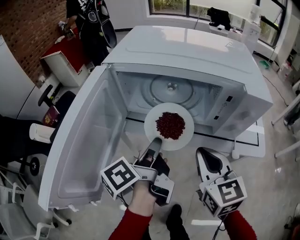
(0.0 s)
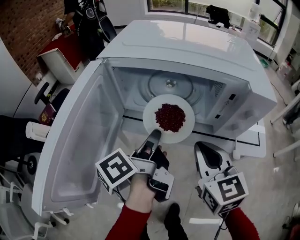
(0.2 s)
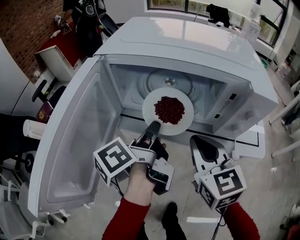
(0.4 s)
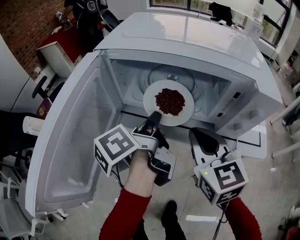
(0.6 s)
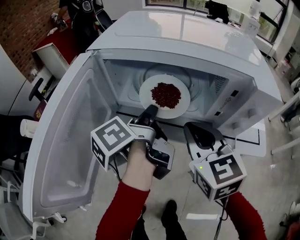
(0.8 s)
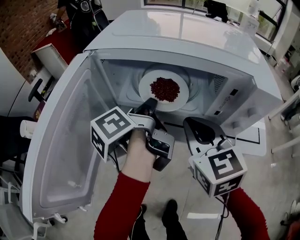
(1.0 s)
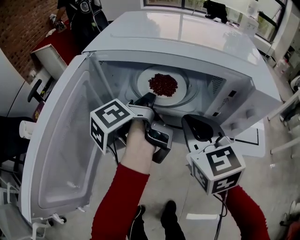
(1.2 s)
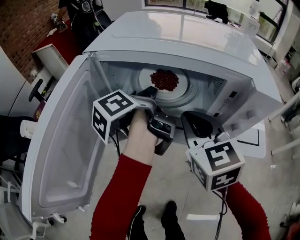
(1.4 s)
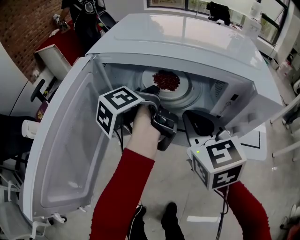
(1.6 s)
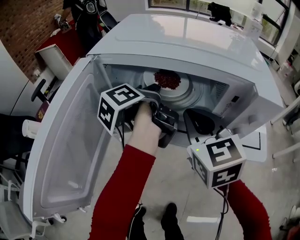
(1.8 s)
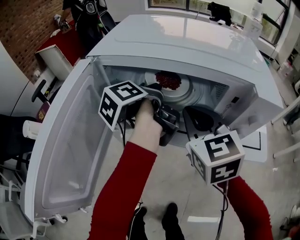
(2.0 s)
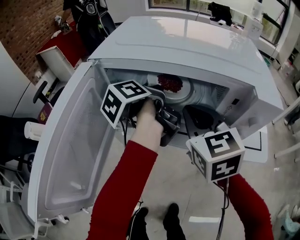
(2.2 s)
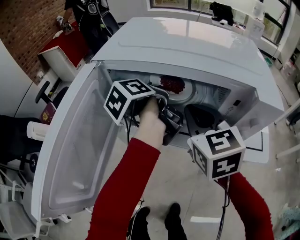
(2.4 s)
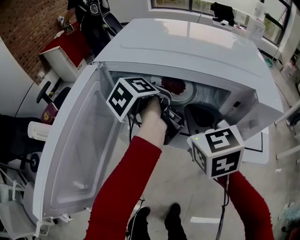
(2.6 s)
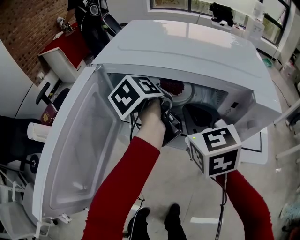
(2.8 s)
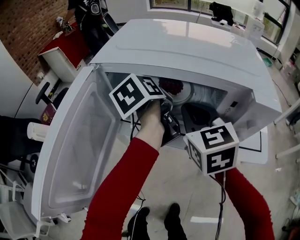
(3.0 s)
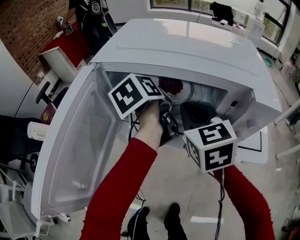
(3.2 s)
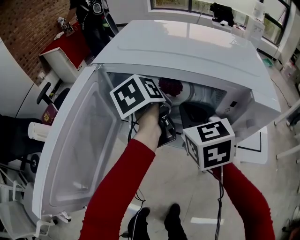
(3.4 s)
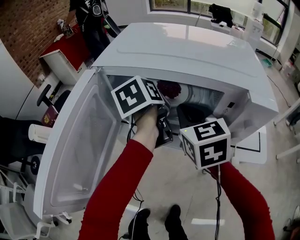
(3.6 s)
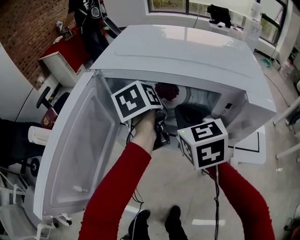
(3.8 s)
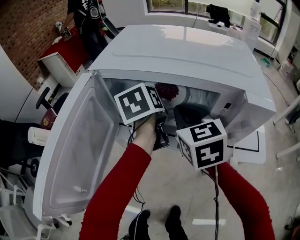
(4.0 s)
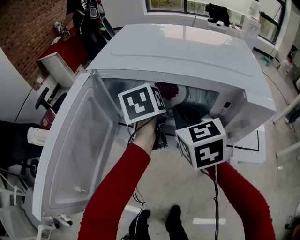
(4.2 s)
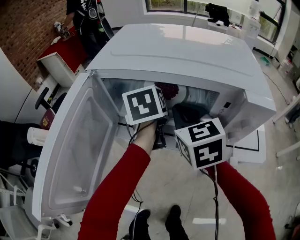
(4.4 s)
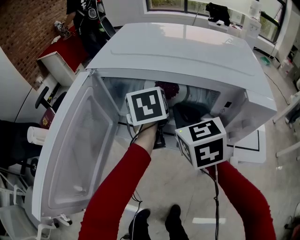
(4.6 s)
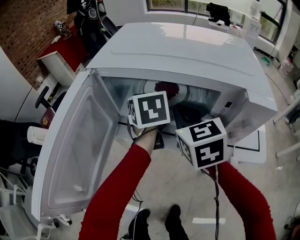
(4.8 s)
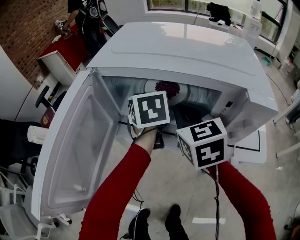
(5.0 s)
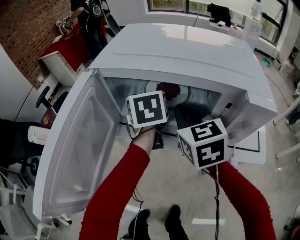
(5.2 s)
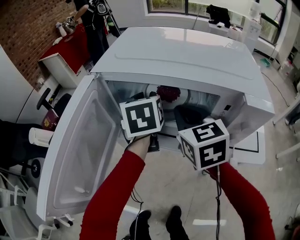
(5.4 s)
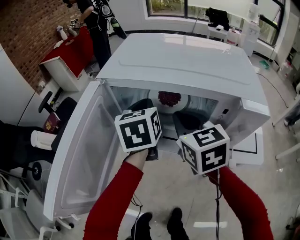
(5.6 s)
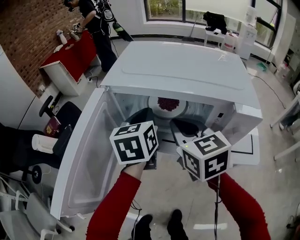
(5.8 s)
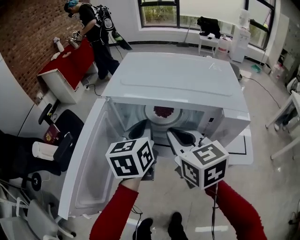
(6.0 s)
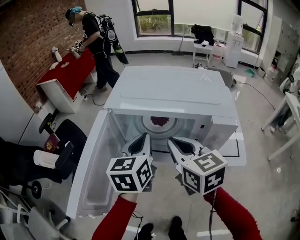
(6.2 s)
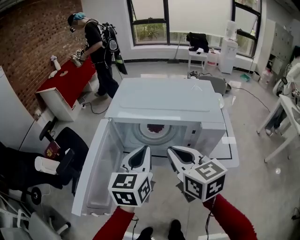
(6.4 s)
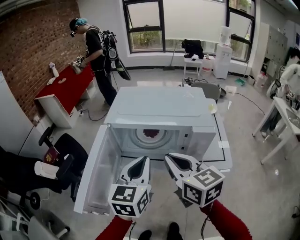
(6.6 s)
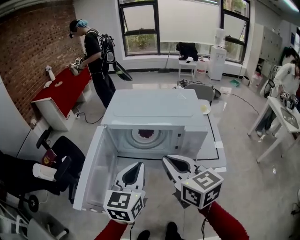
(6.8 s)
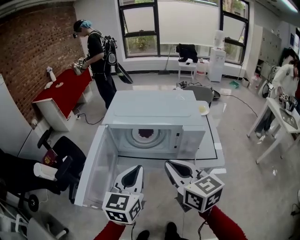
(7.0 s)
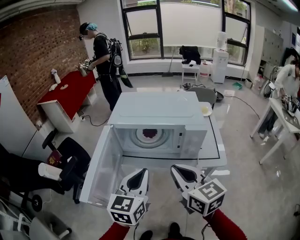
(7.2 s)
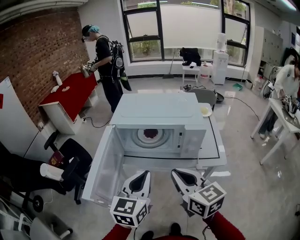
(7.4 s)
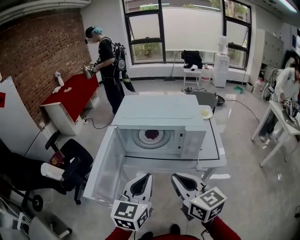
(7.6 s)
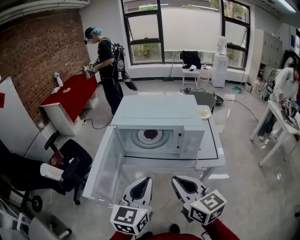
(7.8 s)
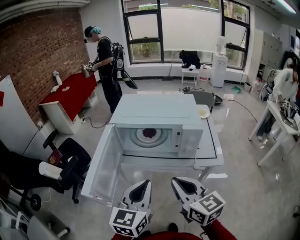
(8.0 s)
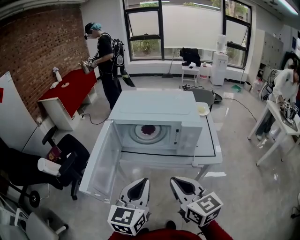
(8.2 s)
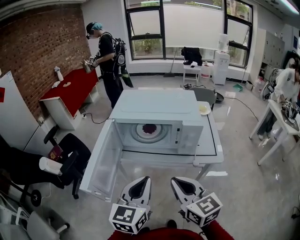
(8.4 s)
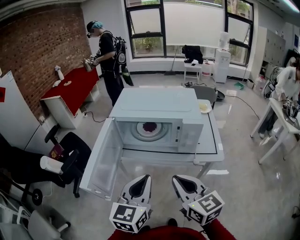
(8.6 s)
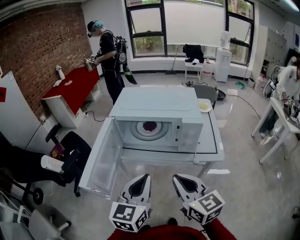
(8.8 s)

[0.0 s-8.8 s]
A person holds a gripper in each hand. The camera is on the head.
0.0 to 1.4 s: The left gripper is displaced forward by approximately 15 cm; the right gripper heads forward, covering approximately 10 cm.
1.4 to 3.0 s: The left gripper turns by some 30 degrees.
3.0 to 4.4 s: The left gripper changes its angle by about 30 degrees.
4.4 to 5.8 s: The right gripper shifts by about 5 cm, while the left gripper goes some 5 cm upward, and closes up.
5.8 to 7.4 s: The two grippers go roughly 20 cm backward. The left gripper turns by some 20 degrees.
7.4 to 8.8 s: The right gripper ends up about 5 cm from where it was. Meanwhile the left gripper is displaced backward by roughly 5 cm.

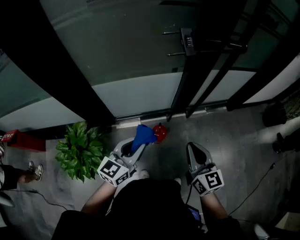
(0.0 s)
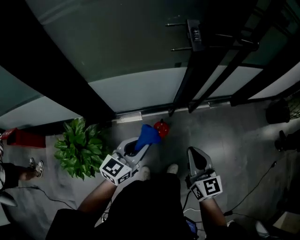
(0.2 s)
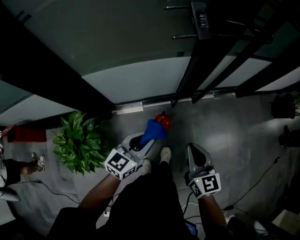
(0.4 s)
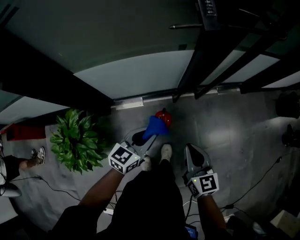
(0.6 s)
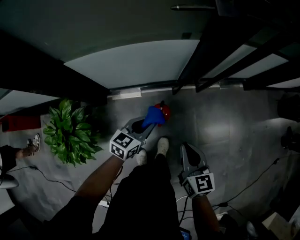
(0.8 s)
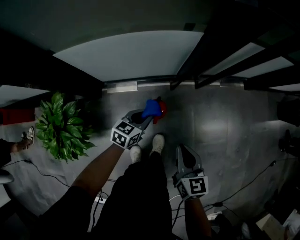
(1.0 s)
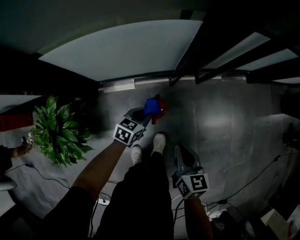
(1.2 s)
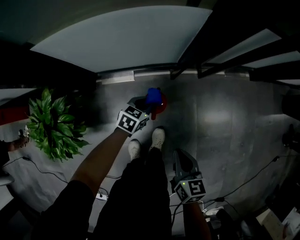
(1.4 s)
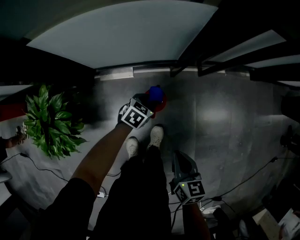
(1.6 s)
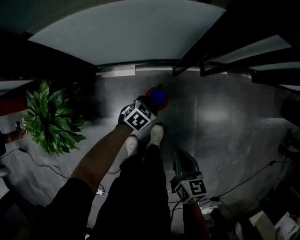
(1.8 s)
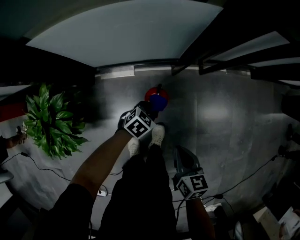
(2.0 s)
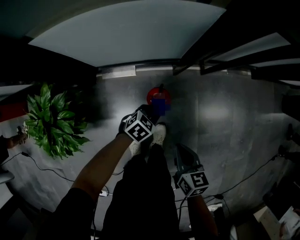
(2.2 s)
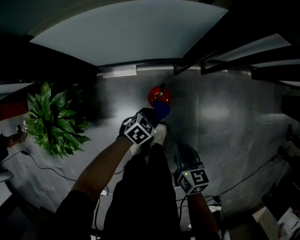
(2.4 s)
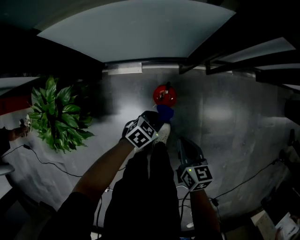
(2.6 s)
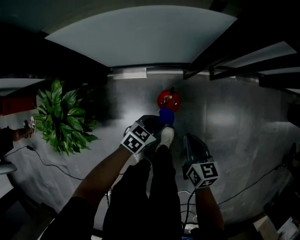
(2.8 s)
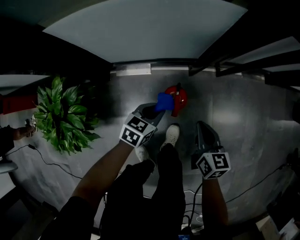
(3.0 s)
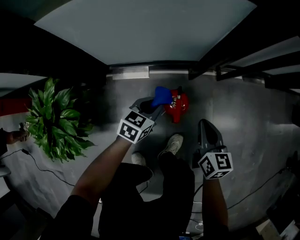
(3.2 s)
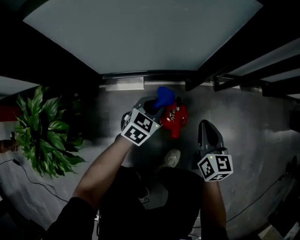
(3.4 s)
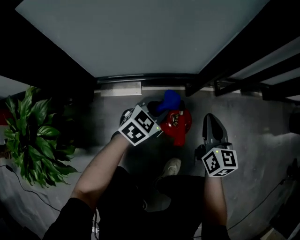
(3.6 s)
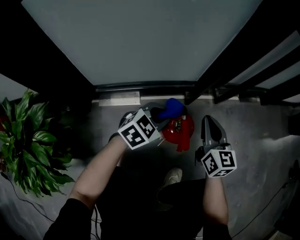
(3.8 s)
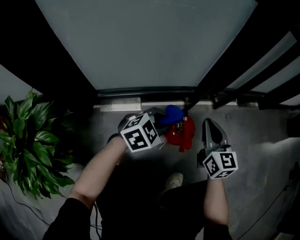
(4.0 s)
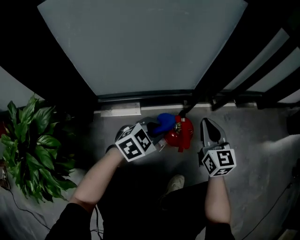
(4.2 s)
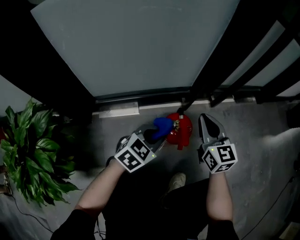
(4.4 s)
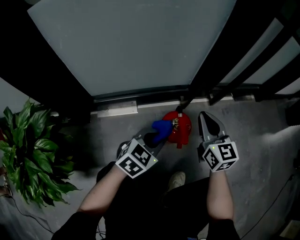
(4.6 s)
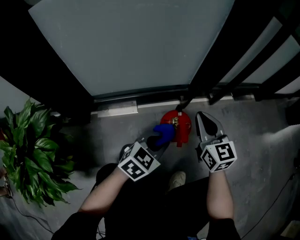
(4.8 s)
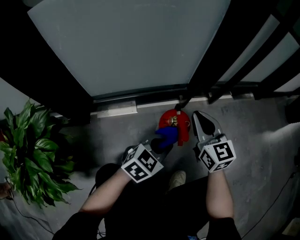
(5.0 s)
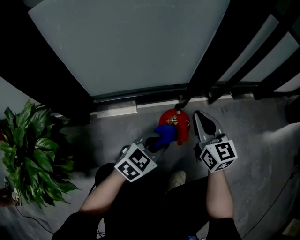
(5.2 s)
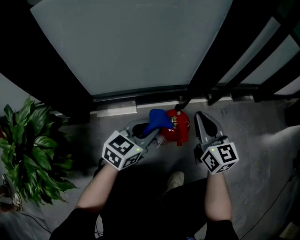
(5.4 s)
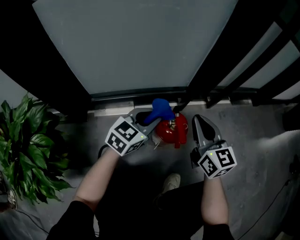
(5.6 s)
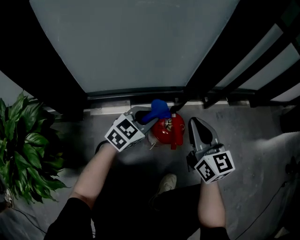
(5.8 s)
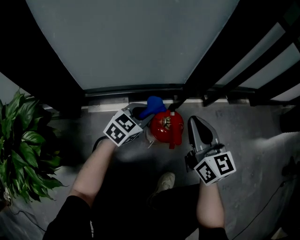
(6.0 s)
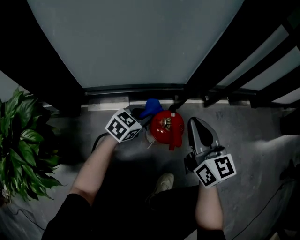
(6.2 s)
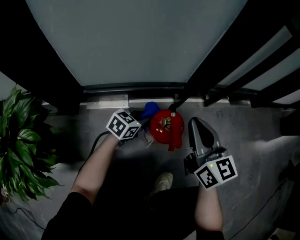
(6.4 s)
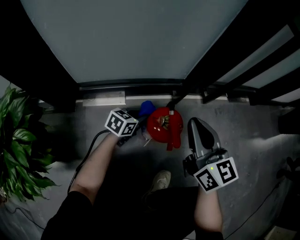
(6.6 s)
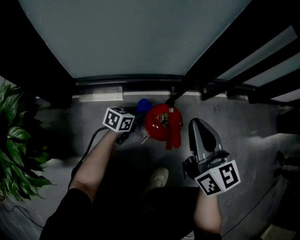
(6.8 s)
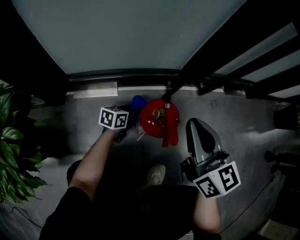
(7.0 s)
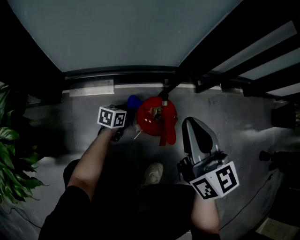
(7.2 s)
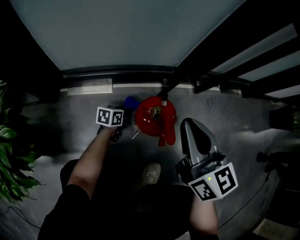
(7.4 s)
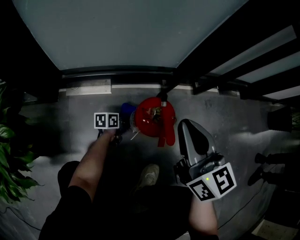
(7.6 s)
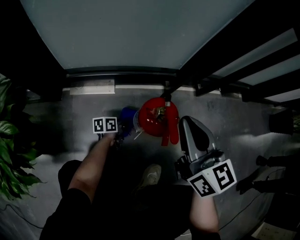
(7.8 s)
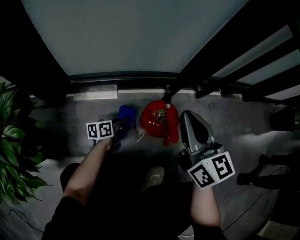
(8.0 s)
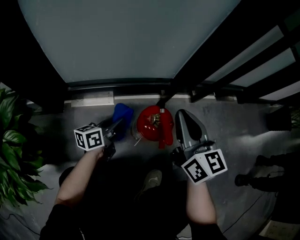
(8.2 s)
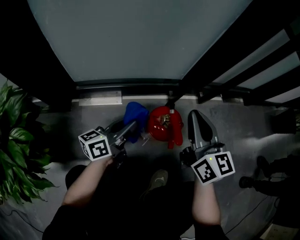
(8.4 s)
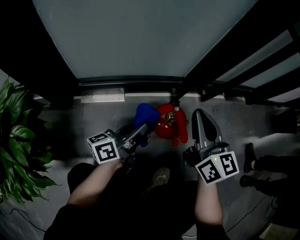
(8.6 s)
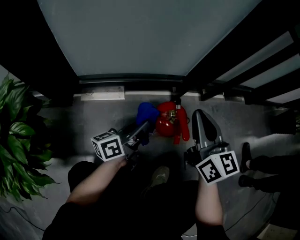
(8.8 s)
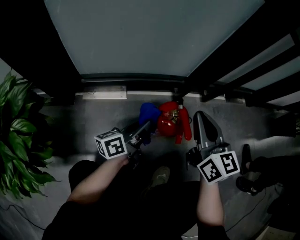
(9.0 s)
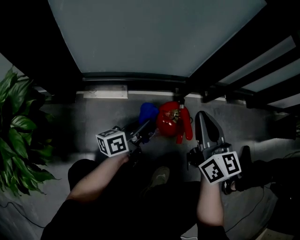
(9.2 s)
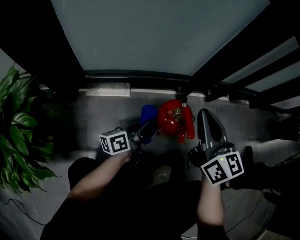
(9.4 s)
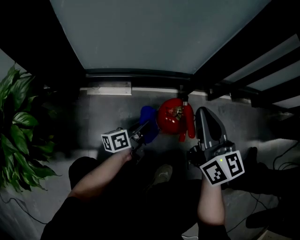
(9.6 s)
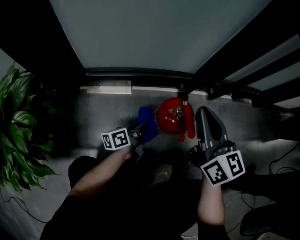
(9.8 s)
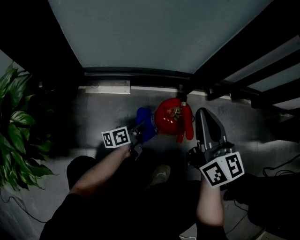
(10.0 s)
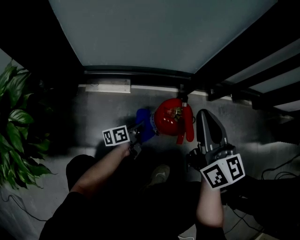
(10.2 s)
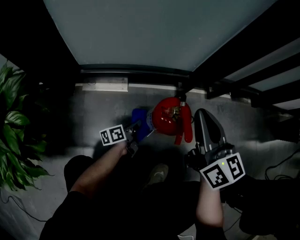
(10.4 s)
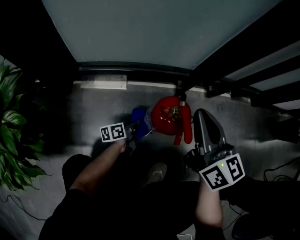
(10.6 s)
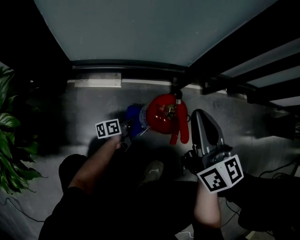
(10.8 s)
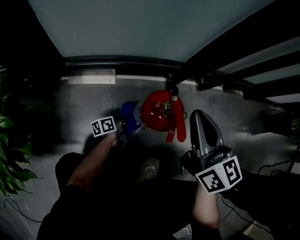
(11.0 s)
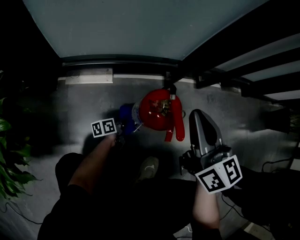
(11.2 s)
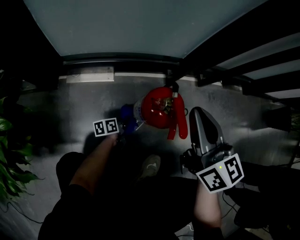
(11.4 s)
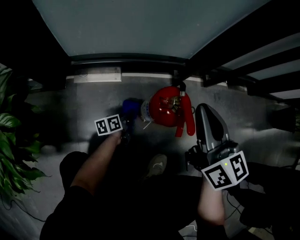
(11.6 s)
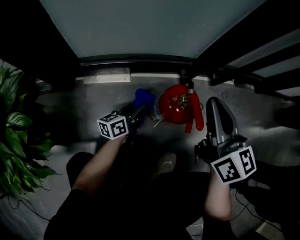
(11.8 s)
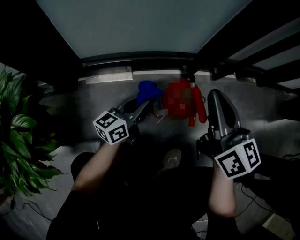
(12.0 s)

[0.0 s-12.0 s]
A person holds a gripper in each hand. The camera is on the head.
0.0 to 1.6 s: Both grippers travel together downward, about 35 cm. The left gripper points its fingers some 40 degrees further downward; the right gripper turns by approximately 40 degrees.
1.6 to 3.0 s: The left gripper travels upward and backward by approximately 10 cm; the right gripper heads forward, covering roughly 10 cm.
3.0 to 4.4 s: The right gripper travels downward and forward by approximately 15 cm, and swivels some 30 degrees. Meanwhile the left gripper heads downward, covering approximately 10 cm, and changes its angle by approximately 30 degrees.
4.4 to 6.0 s: The right gripper ends up some 5 cm from where it was. Meanwhile the left gripper moves forward, approximately 10 cm.
6.0 to 7.6 s: The left gripper shifts about 25 cm downward, and twists some 60 degrees counterclockwise, seen from behind.
7.6 to 9.0 s: The left gripper heads upward, covering roughly 25 cm, and tips its fingers upward by approximately 40 degrees.
9.0 to 10.4 s: The left gripper shifts some 20 cm downward, and turns by about 20 degrees.
10.4 to 12.0 s: The left gripper heads upward, covering some 15 cm, and rotates some 40 degrees.

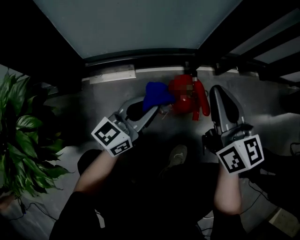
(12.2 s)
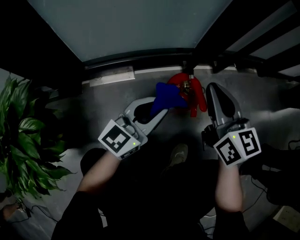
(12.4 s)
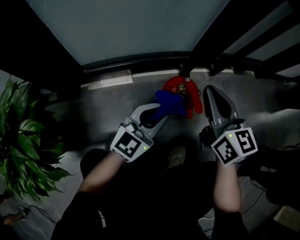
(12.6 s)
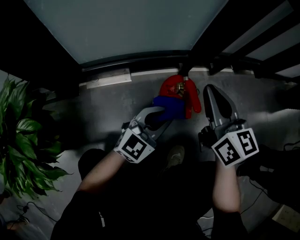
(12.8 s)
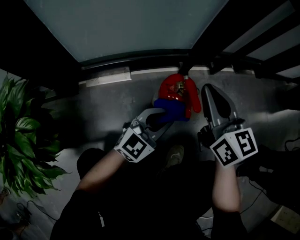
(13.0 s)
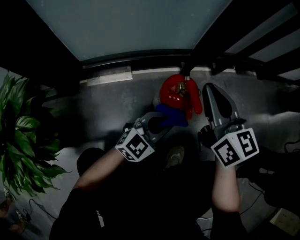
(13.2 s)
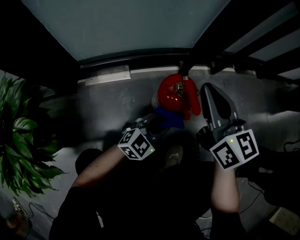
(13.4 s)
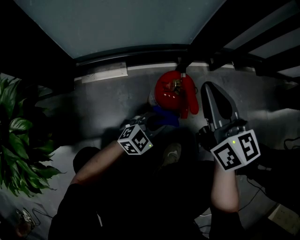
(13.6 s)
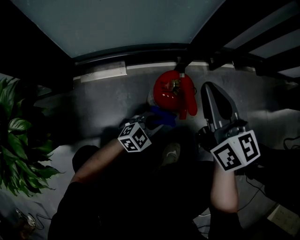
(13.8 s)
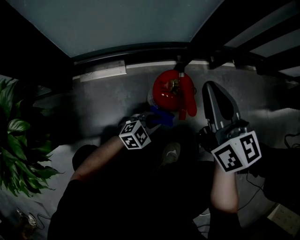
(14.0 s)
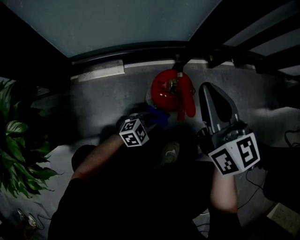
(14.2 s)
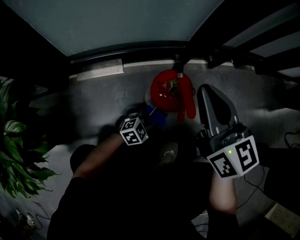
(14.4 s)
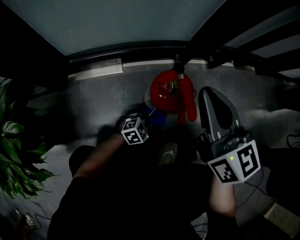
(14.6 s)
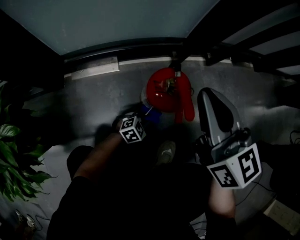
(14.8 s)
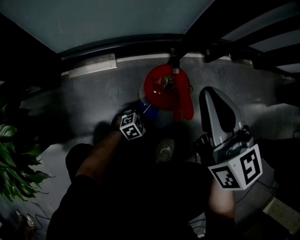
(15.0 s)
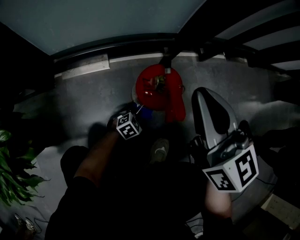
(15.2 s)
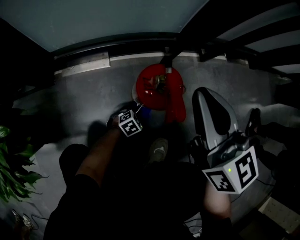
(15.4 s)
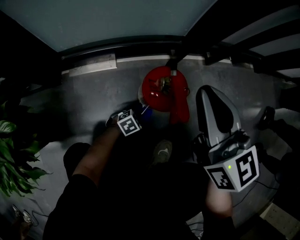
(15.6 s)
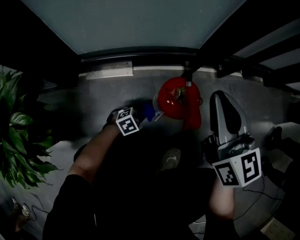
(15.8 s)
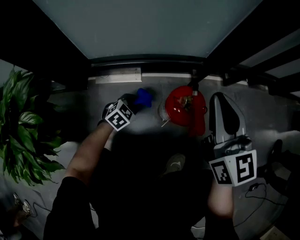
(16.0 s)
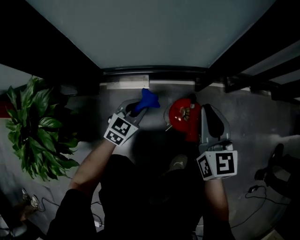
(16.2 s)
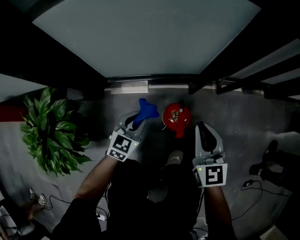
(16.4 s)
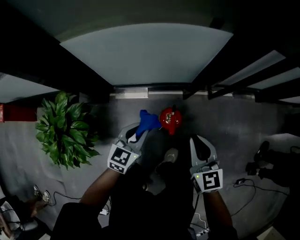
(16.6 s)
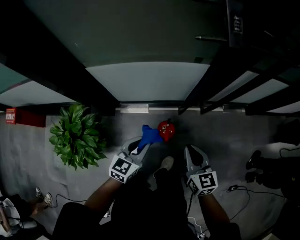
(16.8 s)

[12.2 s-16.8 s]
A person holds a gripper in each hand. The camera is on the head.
12.2 to 13.8 s: The left gripper travels downward and to the right by approximately 20 cm, and tips its fingers downward by about 30 degrees.
13.8 to 15.2 s: The left gripper travels downward by some 15 cm, and turns by some 30 degrees.
15.2 to 16.8 s: The right gripper travels upward by some 20 cm. Meanwhile the left gripper shifts about 60 cm upward, and rotates approximately 50 degrees.
